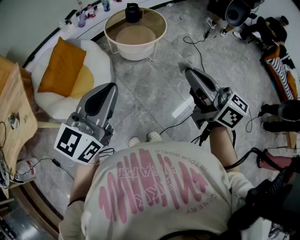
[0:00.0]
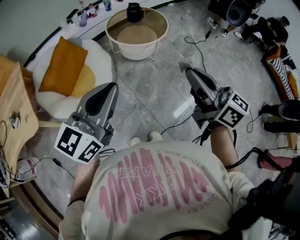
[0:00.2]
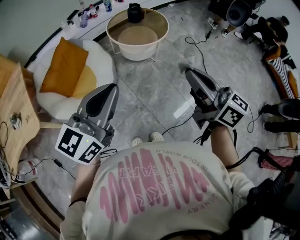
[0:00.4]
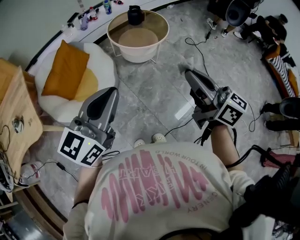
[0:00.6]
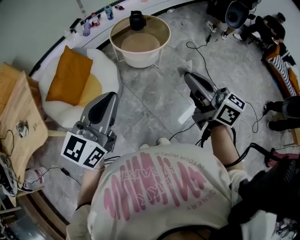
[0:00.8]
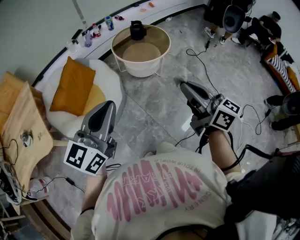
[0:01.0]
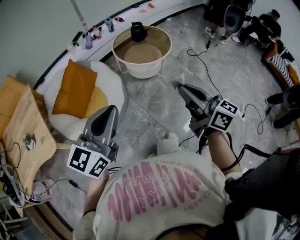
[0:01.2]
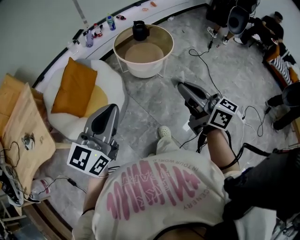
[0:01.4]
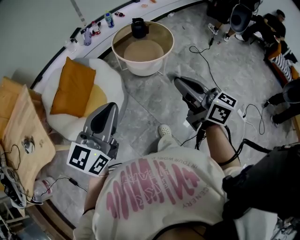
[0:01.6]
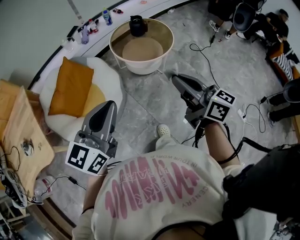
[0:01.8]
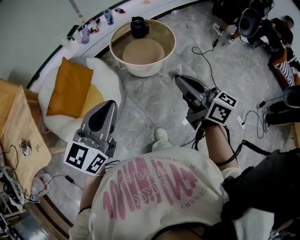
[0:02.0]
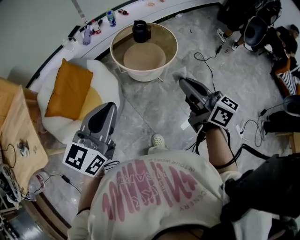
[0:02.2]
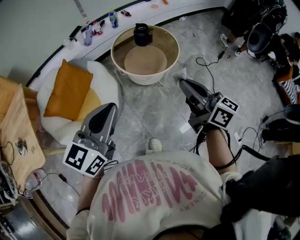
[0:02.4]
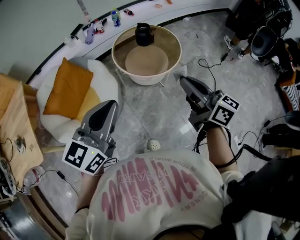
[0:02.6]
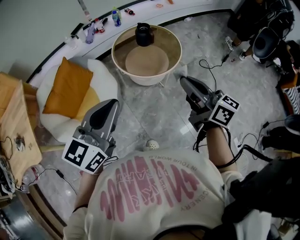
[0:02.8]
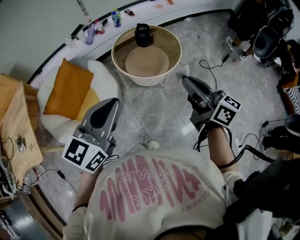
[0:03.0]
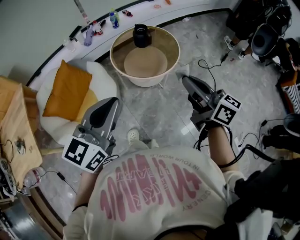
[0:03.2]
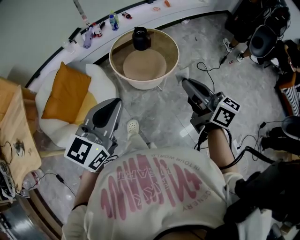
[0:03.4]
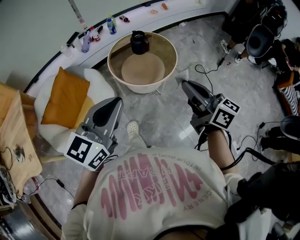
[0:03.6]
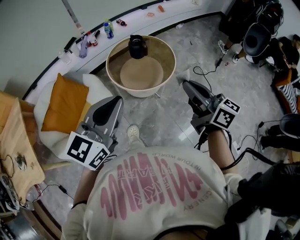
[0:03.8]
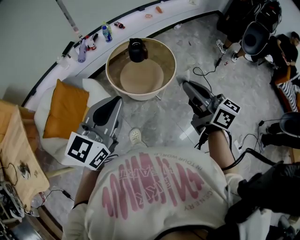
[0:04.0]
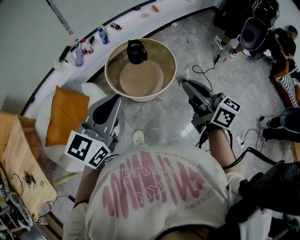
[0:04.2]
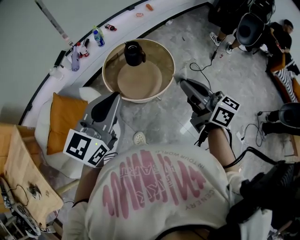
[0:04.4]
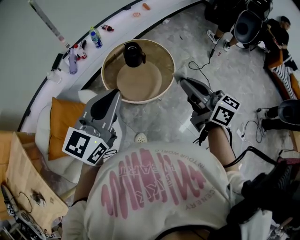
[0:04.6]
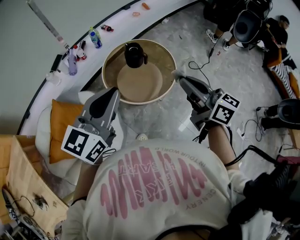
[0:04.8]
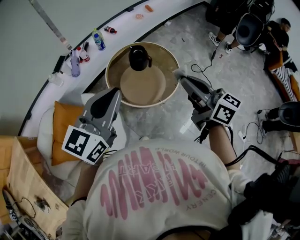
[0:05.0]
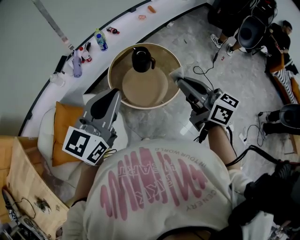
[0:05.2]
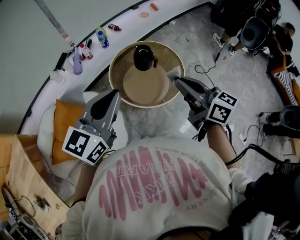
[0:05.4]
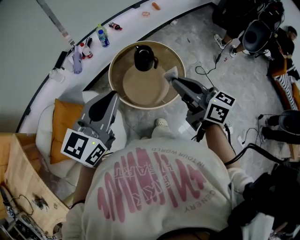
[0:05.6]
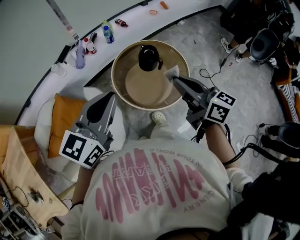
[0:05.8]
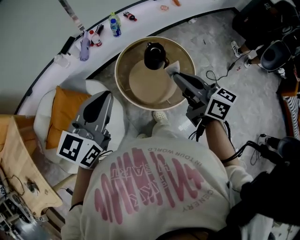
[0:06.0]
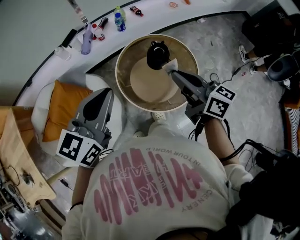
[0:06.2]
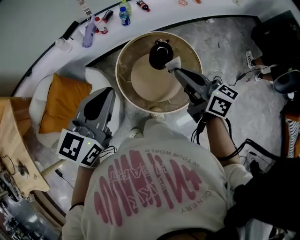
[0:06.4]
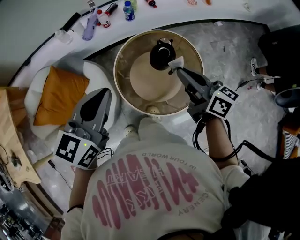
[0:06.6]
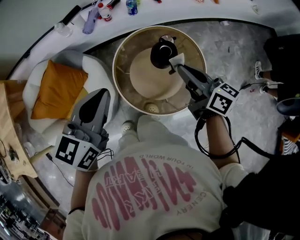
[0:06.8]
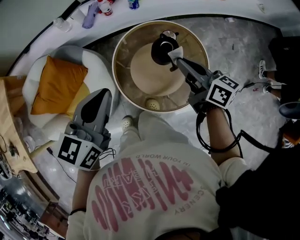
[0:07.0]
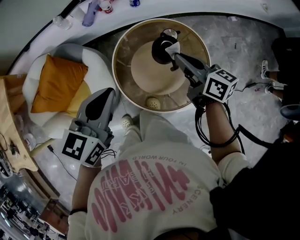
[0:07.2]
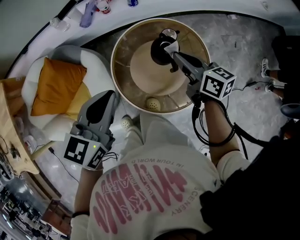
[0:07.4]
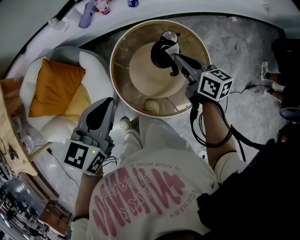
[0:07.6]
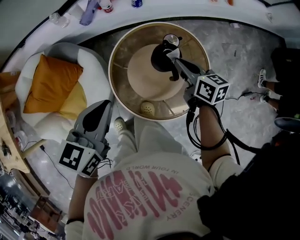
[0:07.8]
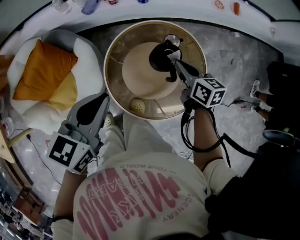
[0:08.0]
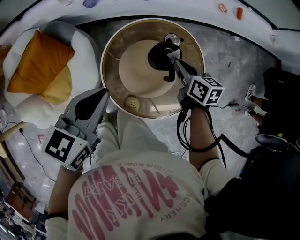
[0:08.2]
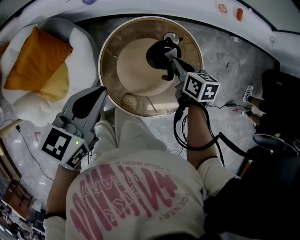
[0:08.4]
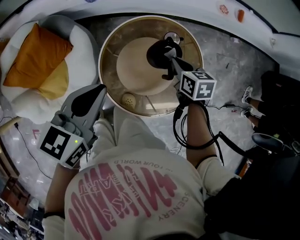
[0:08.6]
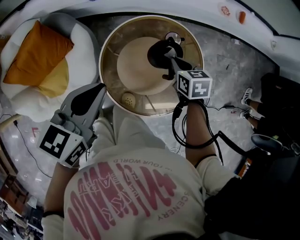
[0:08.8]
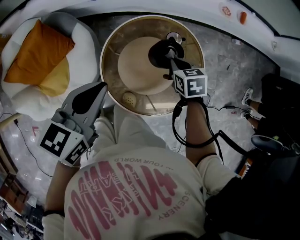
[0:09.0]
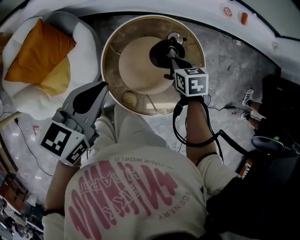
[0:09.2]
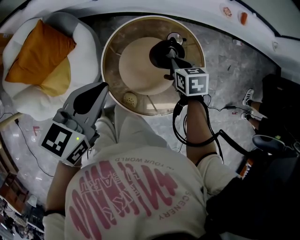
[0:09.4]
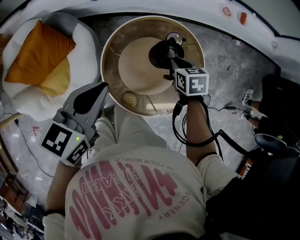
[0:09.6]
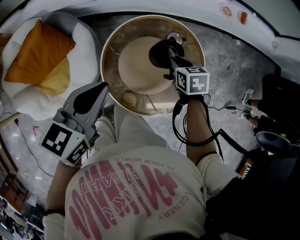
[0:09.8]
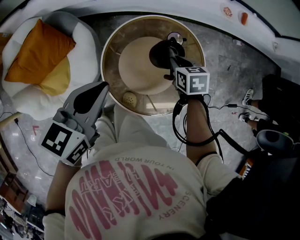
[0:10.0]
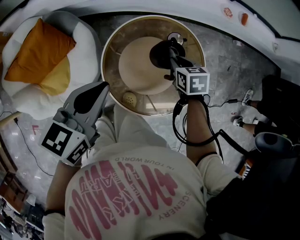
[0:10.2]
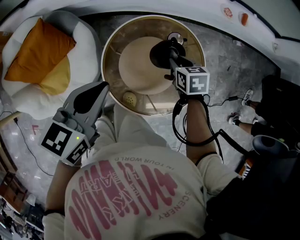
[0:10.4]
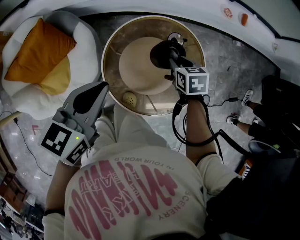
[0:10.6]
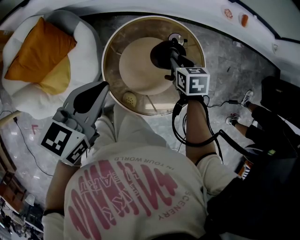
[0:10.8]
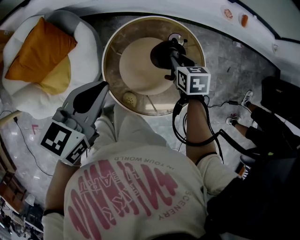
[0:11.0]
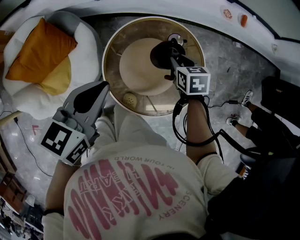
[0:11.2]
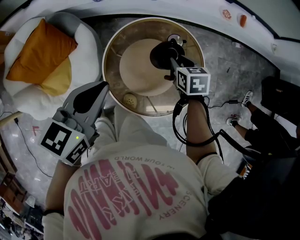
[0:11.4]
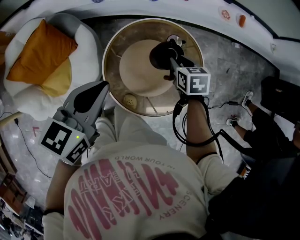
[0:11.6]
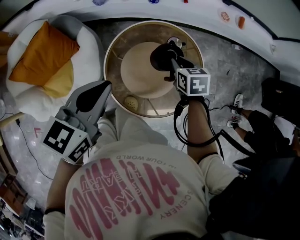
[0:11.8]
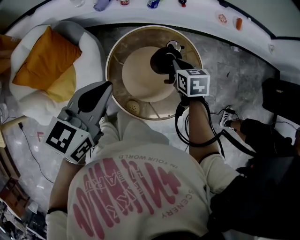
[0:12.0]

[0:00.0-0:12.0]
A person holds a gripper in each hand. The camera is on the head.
0:00.0 to 0:01.6: The right gripper shifts roughly 10 cm forward and to the left. The left gripper is displaced to the left and forward by about 10 cm.
0:01.6 to 0:03.0: Both grippers travel together forward and to the right, roughly 25 cm.
0:03.0 to 0:04.4: The grippers both shift forward by some 15 cm.
0:04.4 to 0:06.0: Both grippers move forward and to the left, some 20 cm.
0:06.0 to 0:07.6: The right gripper is displaced forward and downward by approximately 30 cm, and swivels approximately 20 degrees, while the left gripper is displaced downward, forward and to the right by approximately 20 cm, and rotates about 30 degrees.
0:07.6 to 0:09.0: The right gripper moves downward, about 10 cm, and tips its fingers downward by some 30 degrees.
0:09.0 to 0:10.4: The right gripper opens its fingers.
0:10.4 to 0:12.0: The right gripper closes its fingers.

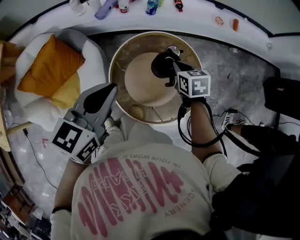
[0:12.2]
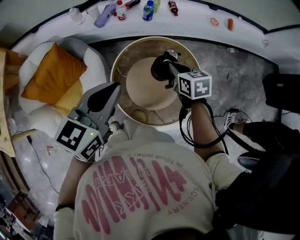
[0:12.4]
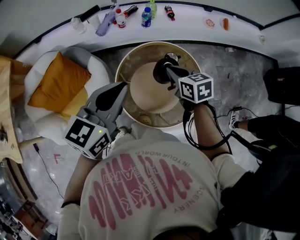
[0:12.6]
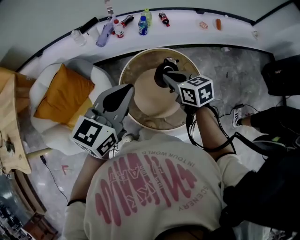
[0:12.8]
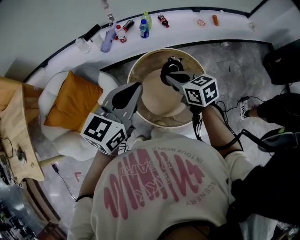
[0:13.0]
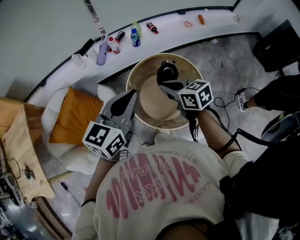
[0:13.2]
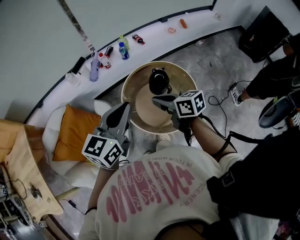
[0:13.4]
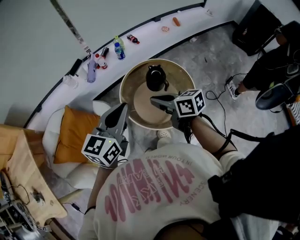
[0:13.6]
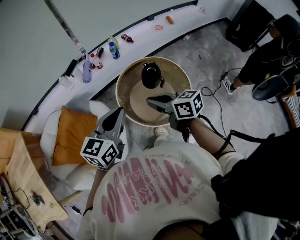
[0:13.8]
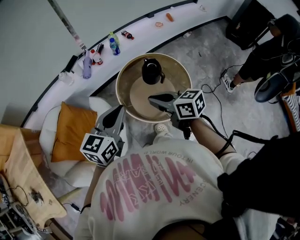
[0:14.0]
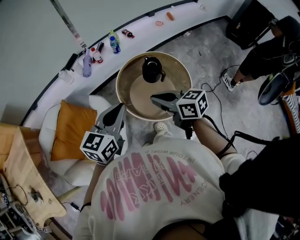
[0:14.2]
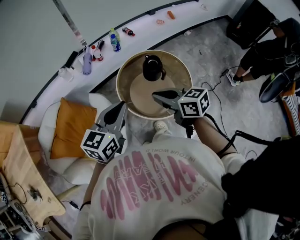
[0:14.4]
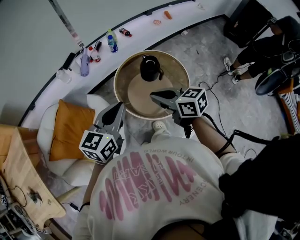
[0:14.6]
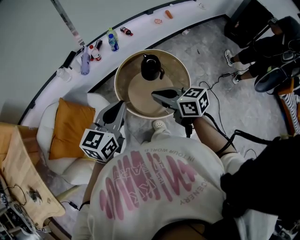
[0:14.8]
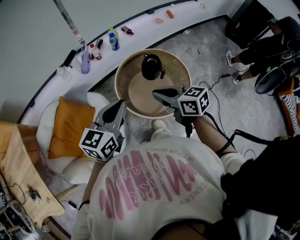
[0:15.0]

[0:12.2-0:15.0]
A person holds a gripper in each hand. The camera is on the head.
0:12.2 to 0:13.6: The left gripper is displaced upward and backward by roughly 10 cm, and changes its angle by about 30 degrees. Meanwhile the right gripper heads backward, upward and to the left, covering approximately 30 cm, and tips its fingers upward by approximately 30 degrees.
0:13.6 to 0:15.0: The left gripper changes place by about 5 cm; the right gripper is displaced backward by some 5 cm.

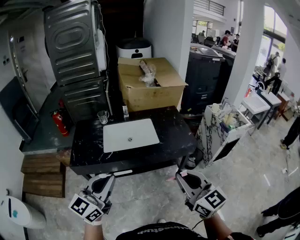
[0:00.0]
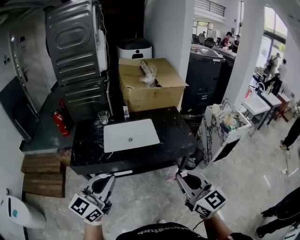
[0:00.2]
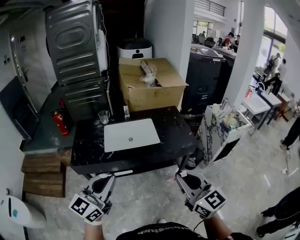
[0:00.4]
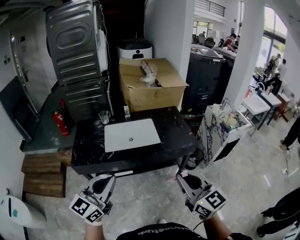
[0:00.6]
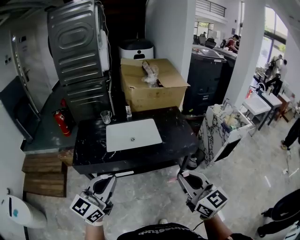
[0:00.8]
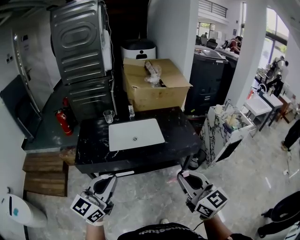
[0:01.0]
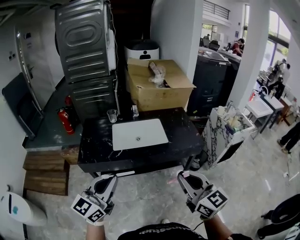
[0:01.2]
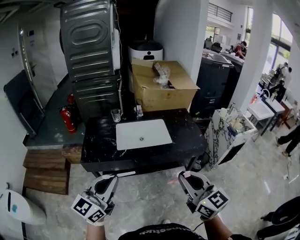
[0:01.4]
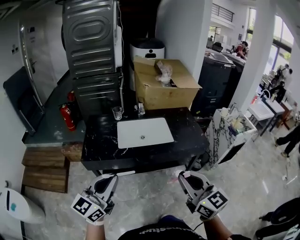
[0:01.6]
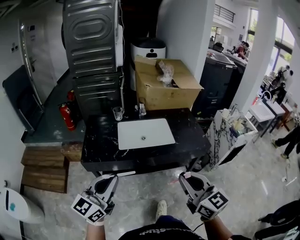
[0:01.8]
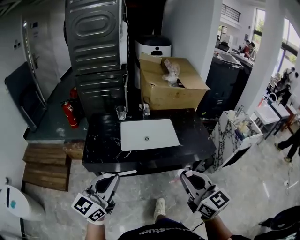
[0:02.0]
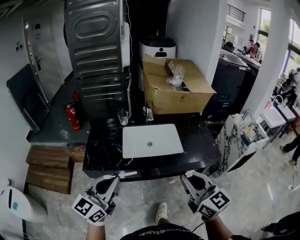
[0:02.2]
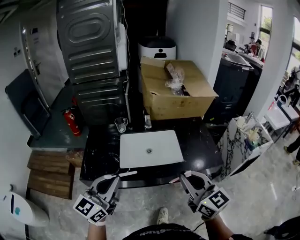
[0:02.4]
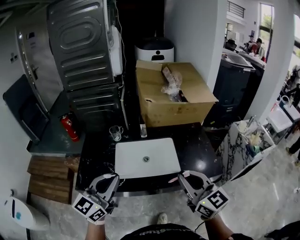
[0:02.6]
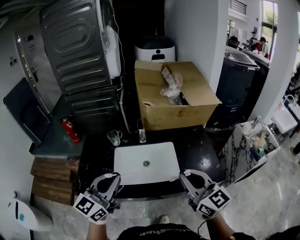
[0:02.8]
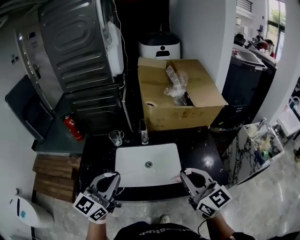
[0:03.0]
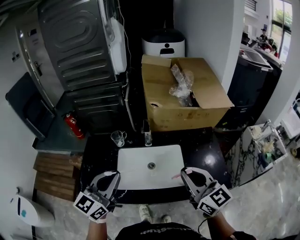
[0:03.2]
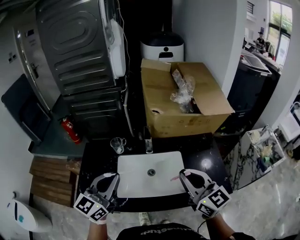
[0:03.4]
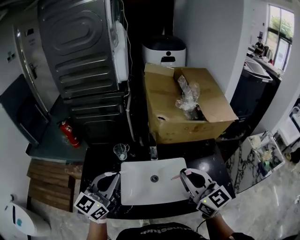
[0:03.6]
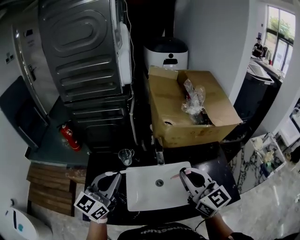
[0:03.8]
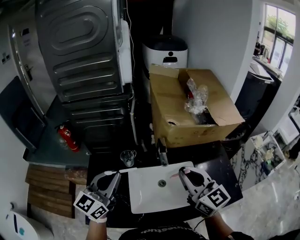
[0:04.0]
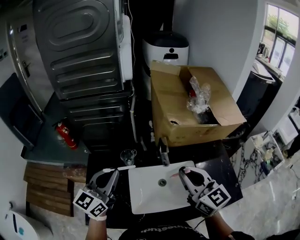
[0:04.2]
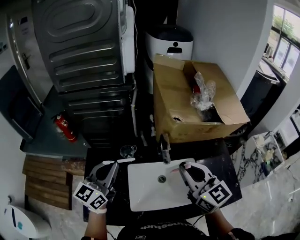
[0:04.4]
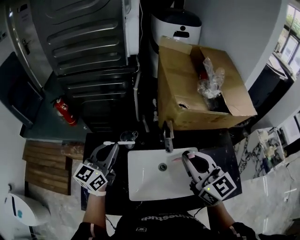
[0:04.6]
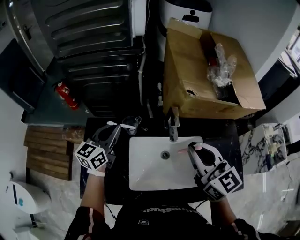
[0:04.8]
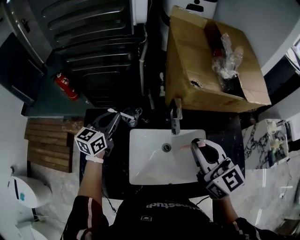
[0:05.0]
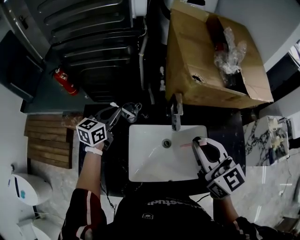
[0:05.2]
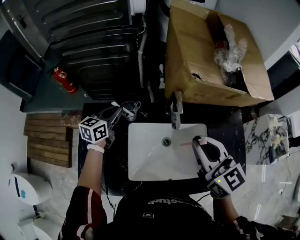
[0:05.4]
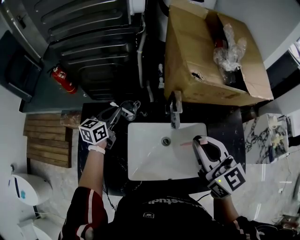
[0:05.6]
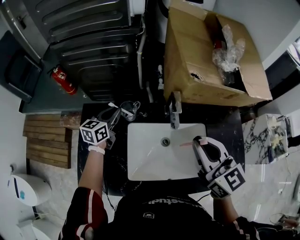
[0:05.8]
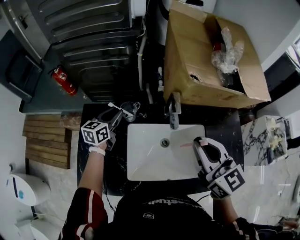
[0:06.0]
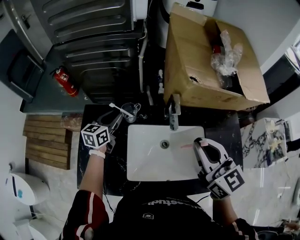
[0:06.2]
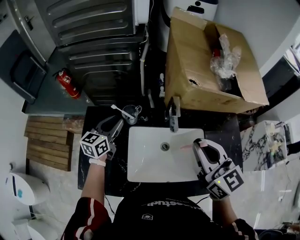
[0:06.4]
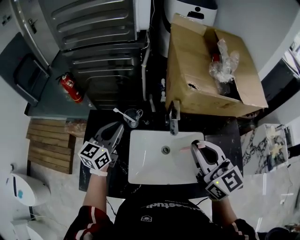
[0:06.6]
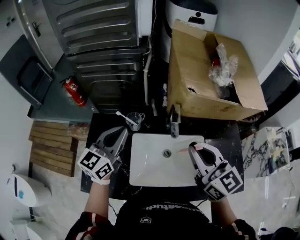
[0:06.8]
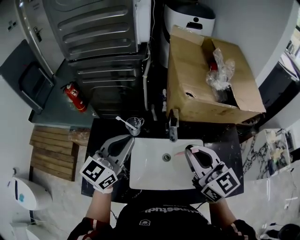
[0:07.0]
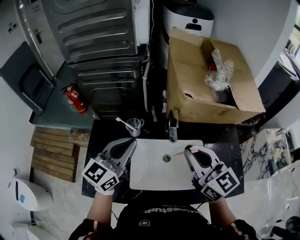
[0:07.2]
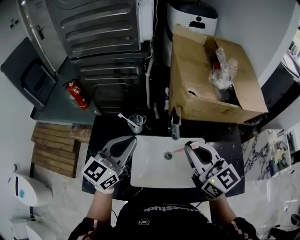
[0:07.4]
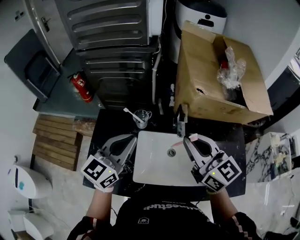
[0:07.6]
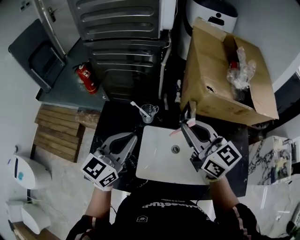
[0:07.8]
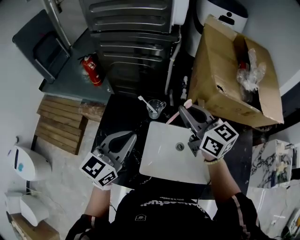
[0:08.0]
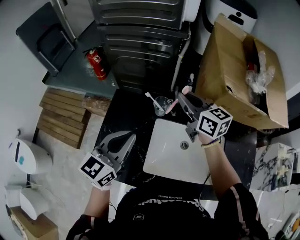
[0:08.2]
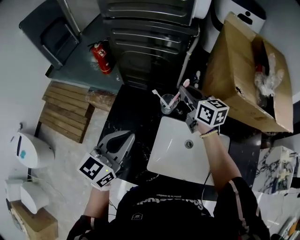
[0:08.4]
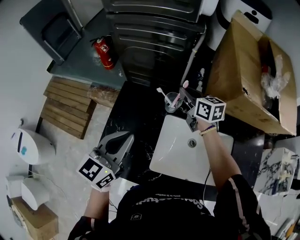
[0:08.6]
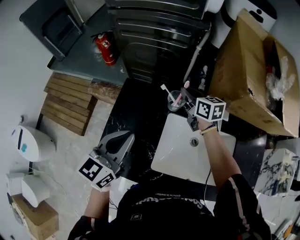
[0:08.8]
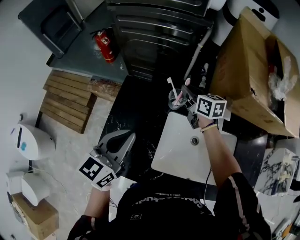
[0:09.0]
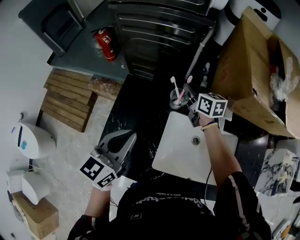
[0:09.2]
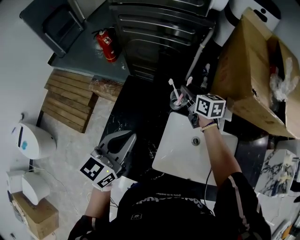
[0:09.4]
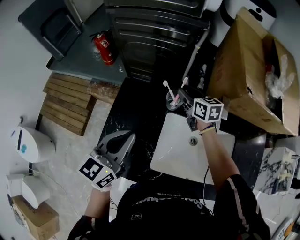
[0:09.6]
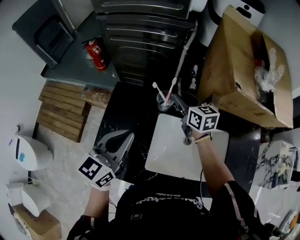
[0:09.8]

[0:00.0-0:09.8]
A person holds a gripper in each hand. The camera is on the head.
0:00.0 to 0:01.4: Both grippers travel together to the left, some 10 cm.
0:01.4 to 0:02.8: Both grippers travel together forward, roughly 30 cm.
0:02.8 to 0:04.2: Both grippers move forward and to the left, approximately 30 cm.
0:04.2 to 0:05.6: The left gripper moves downward and forward, some 30 cm, and changes its angle by approximately 30 degrees; the right gripper travels forward and downward by some 10 cm.
0:05.6 to 0:07.0: The left gripper is displaced upward and backward by about 25 cm, rotates approximately 30 degrees, and opens and closes again.
0:07.0 to 0:08.4: The left gripper heads to the left and downward, covering approximately 15 cm. The right gripper heads forward, to the left and downward, covering about 30 cm, and rotates approximately 20 degrees.
0:08.4 to 0:09.8: The right gripper heads downward, covering roughly 5 cm, and opens its fingers.
